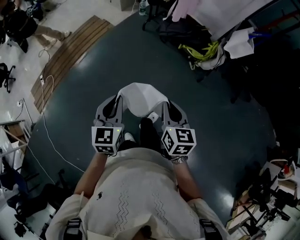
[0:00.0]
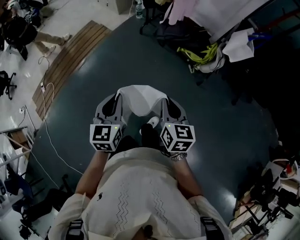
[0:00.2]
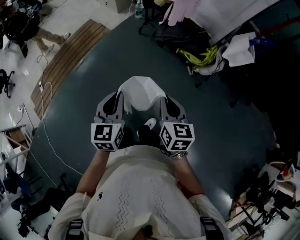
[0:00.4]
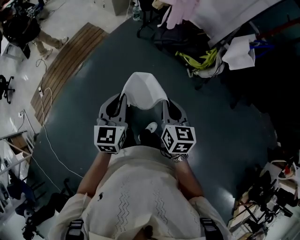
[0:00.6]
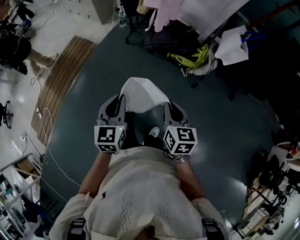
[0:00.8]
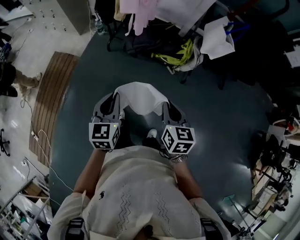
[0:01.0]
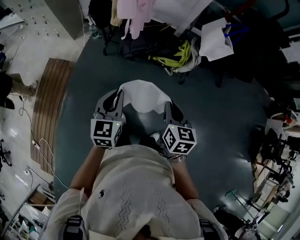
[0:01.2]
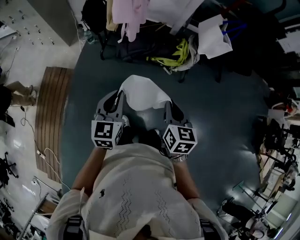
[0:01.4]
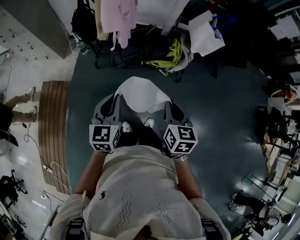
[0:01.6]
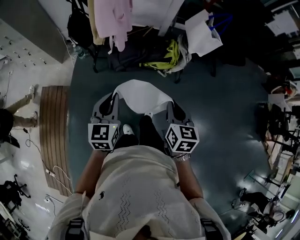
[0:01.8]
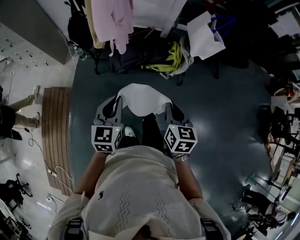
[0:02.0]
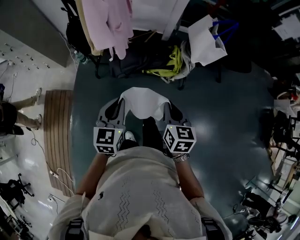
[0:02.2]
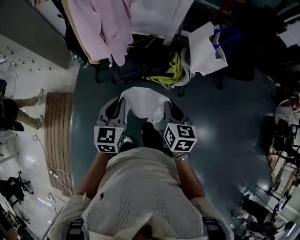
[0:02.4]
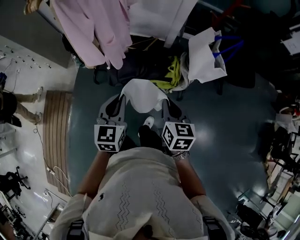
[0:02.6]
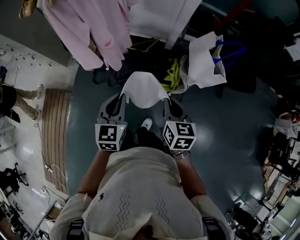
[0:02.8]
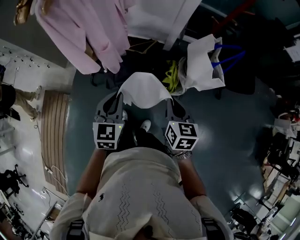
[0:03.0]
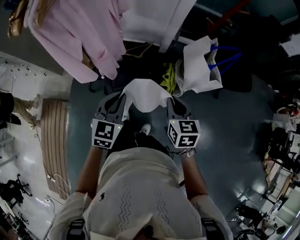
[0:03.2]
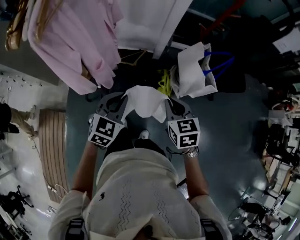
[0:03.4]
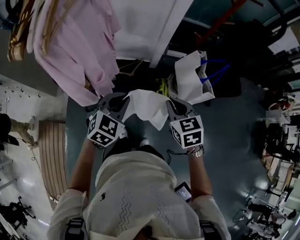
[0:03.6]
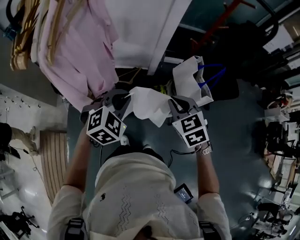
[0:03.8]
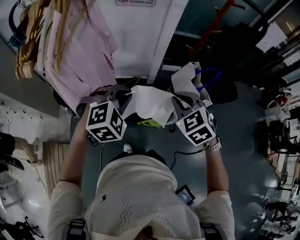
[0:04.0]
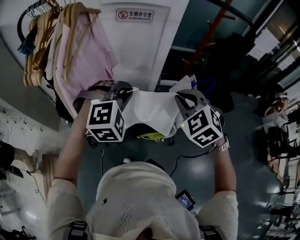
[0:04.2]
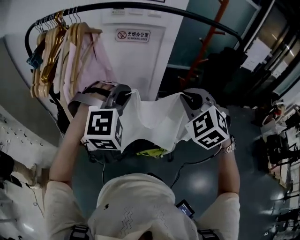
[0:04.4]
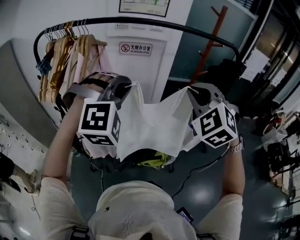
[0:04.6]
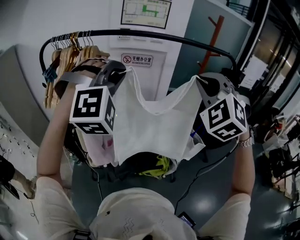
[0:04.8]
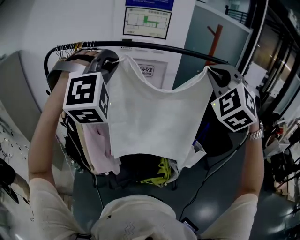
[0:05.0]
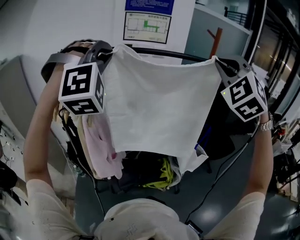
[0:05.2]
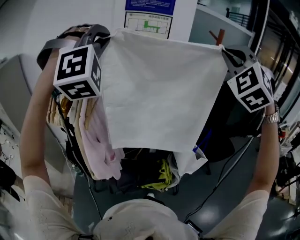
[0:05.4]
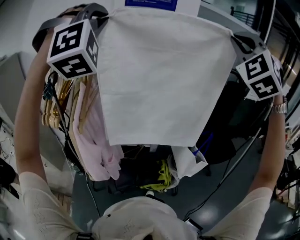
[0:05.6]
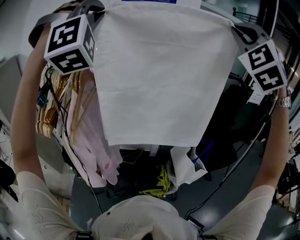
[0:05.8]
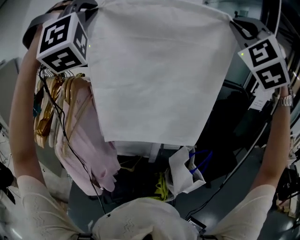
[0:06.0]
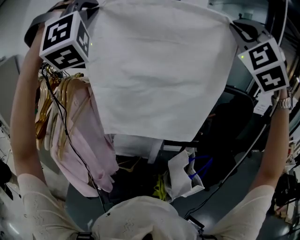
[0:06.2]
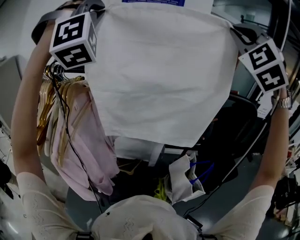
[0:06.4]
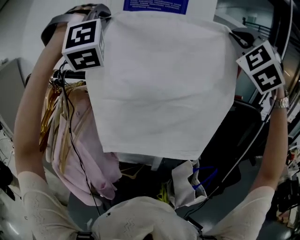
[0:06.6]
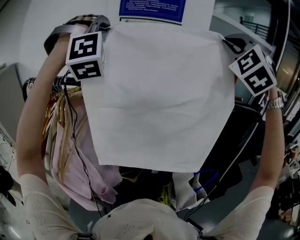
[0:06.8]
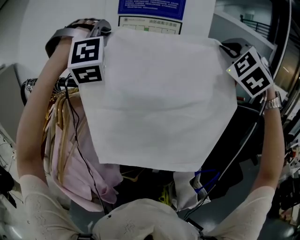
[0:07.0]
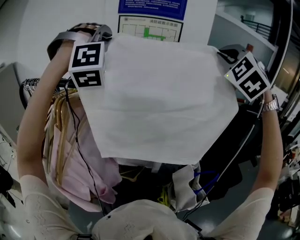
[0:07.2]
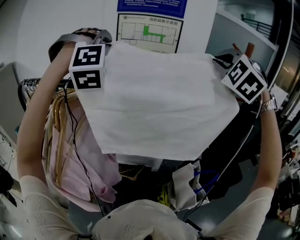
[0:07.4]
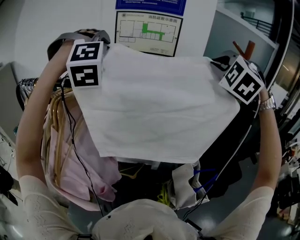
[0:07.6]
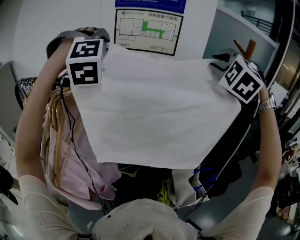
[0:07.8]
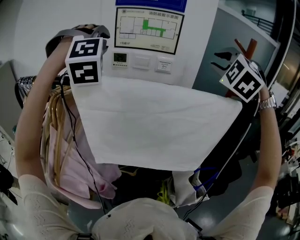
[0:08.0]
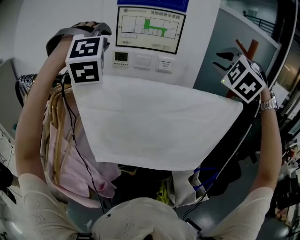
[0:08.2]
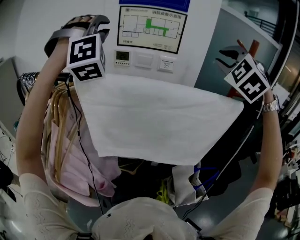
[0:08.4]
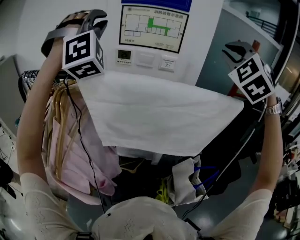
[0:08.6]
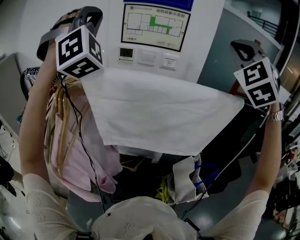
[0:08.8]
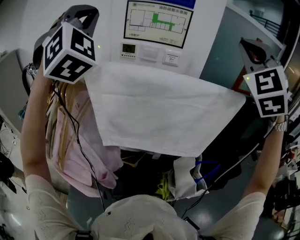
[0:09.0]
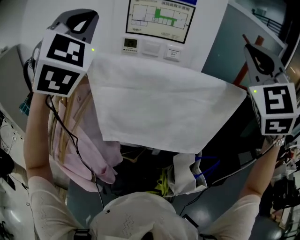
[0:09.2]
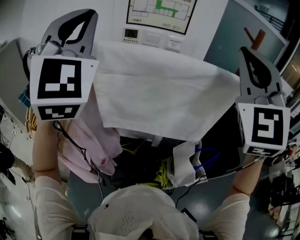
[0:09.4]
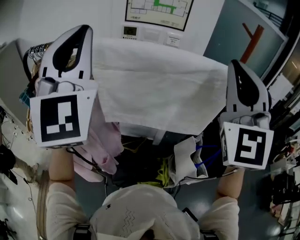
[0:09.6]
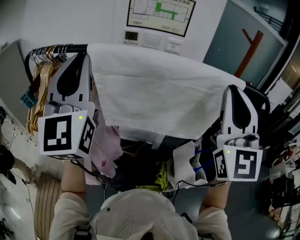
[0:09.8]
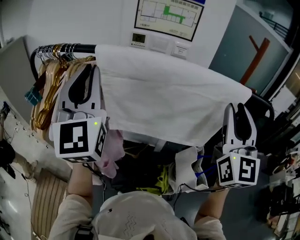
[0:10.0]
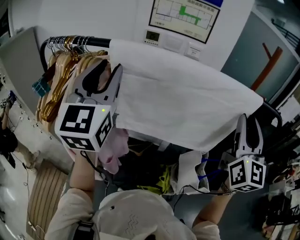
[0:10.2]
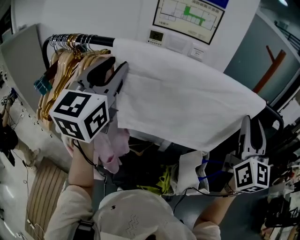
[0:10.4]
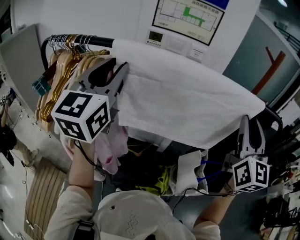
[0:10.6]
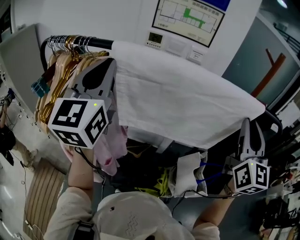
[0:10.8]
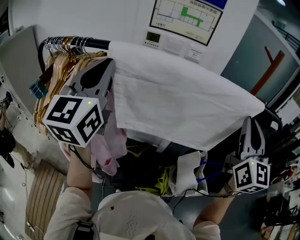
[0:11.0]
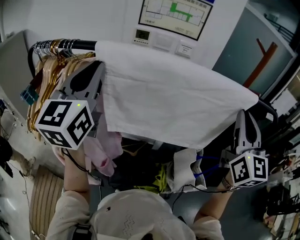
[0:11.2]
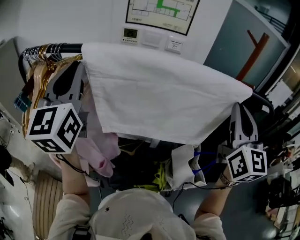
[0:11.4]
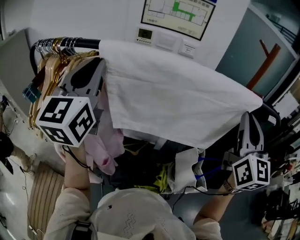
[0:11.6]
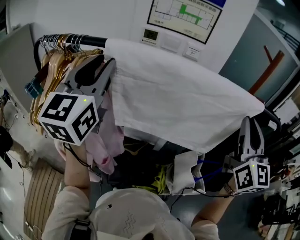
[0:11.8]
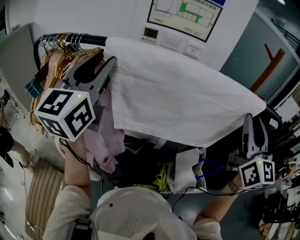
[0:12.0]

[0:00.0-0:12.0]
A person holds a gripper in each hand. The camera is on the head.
0:00.0 to 0:01.6: The left gripper shifts by some 50 cm, and changes its angle by about 40 degrees, while the right gripper ends up about 35 cm from where it was, and changes its angle by about 40 degrees.
0:01.6 to 0:03.0: The right gripper heads forward, covering some 35 cm. The left gripper goes roughly 35 cm forward and to the right.
0:03.0 to 0:04.4: Both grippers travel together upward and forward, roughly 35 cm. The left gripper twists roughly 80 degrees clockwise, seen from behind. The right gripper rolls counterclockwise, seen from behind, by roughly 60 degrees.
0:04.4 to 0:06.0: Both grippers travel together upward and forward, about 40 cm. The right gripper tips its fingers upward by about 40 degrees; the left gripper points its fingers some 40 degrees further upward.
0:06.0 to 0:07.6: The two grippers go approximately 25 cm forward and downward. The left gripper rotates approximately 30 degrees. The right gripper swivels approximately 30 degrees.
0:07.6 to 0:09.0: The left gripper is displaced upward and backward by some 10 cm, and turns by approximately 40 degrees, while the right gripper shifts roughly 10 cm backward and upward, turns by some 30 degrees, and opens and closes again.
0:09.0 to 0:10.4: Both grippers move downward and backward, roughly 20 cm. The left gripper twists roughly 70 degrees counterclockwise, seen from behind, and opens its fingers. The right gripper twists roughly 60 degrees clockwise, seen from behind, and opens up.
0:10.4 to 0:12.0: The left gripper closes, then reopens.

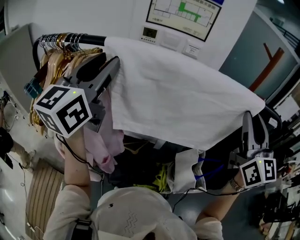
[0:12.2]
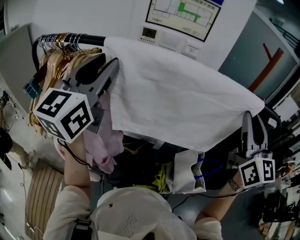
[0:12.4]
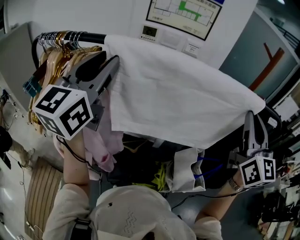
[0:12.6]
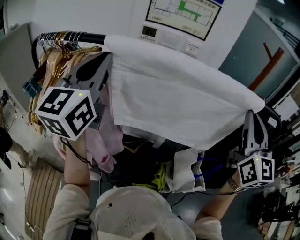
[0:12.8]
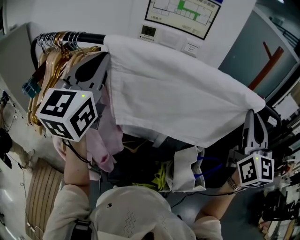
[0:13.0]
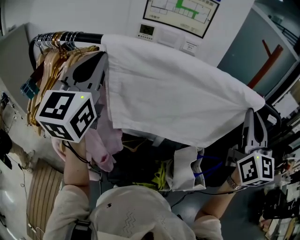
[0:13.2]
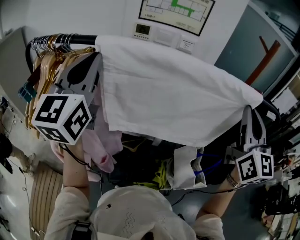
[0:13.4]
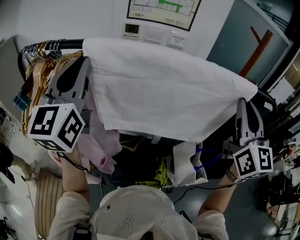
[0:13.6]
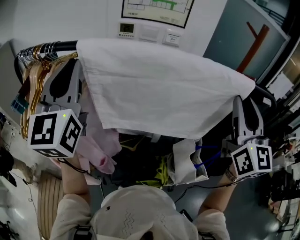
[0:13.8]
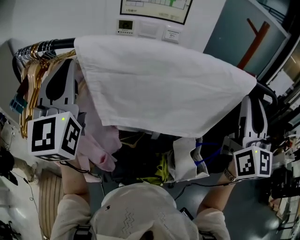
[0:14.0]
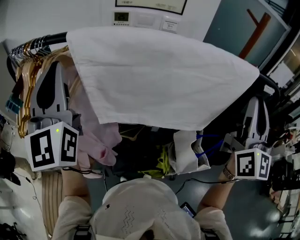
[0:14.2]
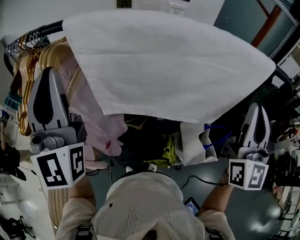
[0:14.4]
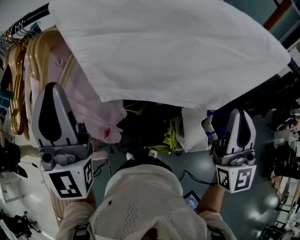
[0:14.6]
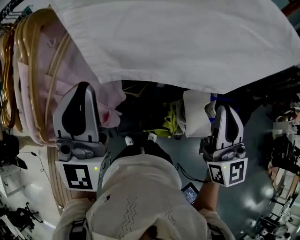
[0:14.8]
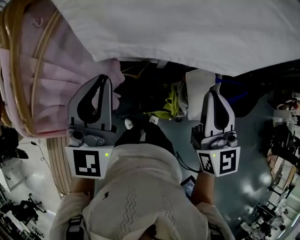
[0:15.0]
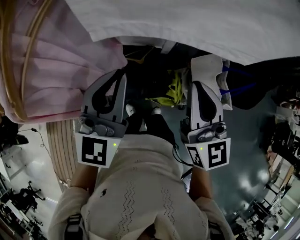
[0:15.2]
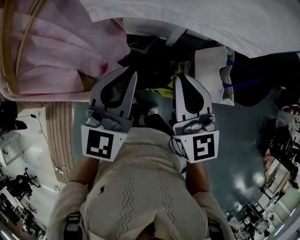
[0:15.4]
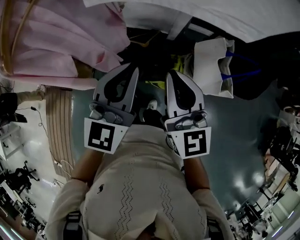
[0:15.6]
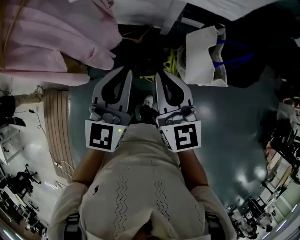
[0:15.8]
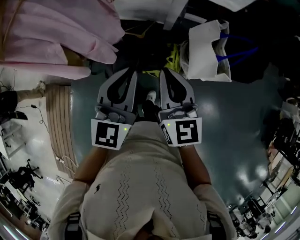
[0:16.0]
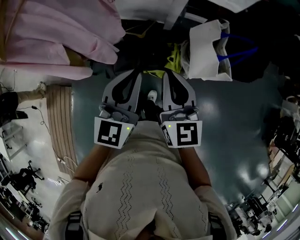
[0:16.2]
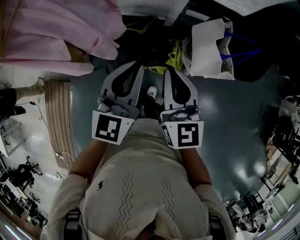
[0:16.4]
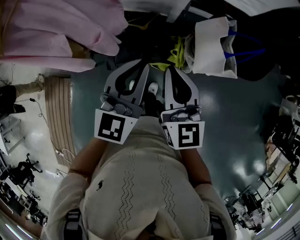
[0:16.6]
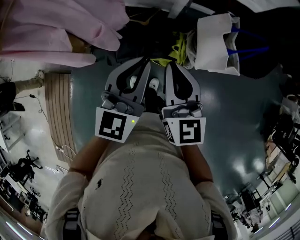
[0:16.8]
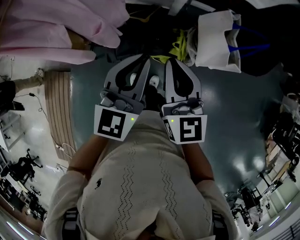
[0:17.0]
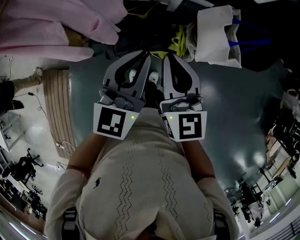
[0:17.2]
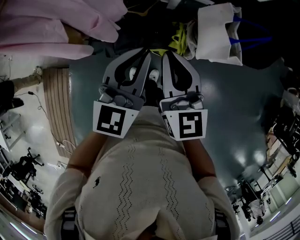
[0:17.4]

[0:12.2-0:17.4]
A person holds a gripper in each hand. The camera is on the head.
0:12.2 to 0:14.0: The left gripper turns by roughly 30 degrees, and closes.
0:14.0 to 0:15.6: The right gripper is displaced downward and to the left by about 40 cm, turns by some 40 degrees, and closes. Meanwhile the left gripper heads downward, to the right and backward, covering roughly 40 cm, and turns by about 30 degrees.
0:15.6 to 0:17.4: Both grippers move backward and downward, roughly 10 cm.

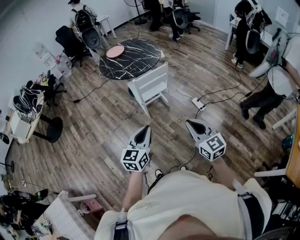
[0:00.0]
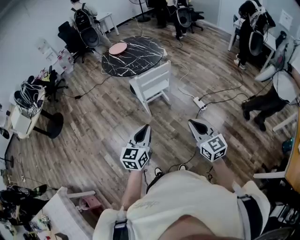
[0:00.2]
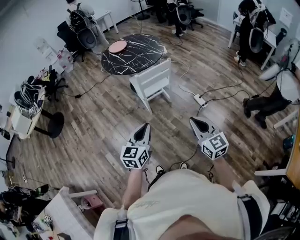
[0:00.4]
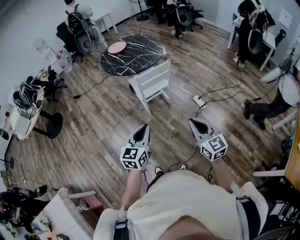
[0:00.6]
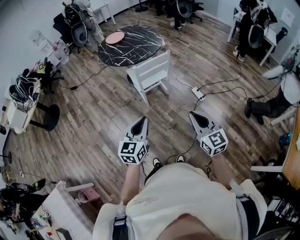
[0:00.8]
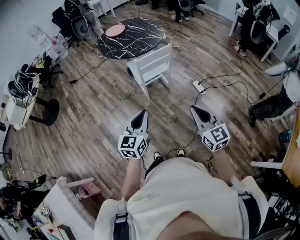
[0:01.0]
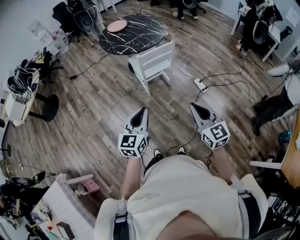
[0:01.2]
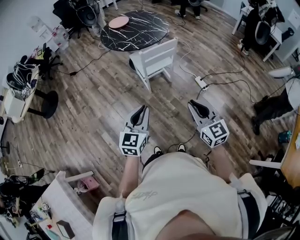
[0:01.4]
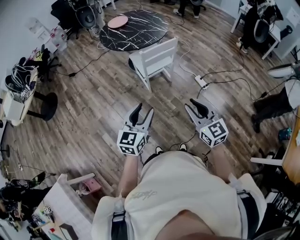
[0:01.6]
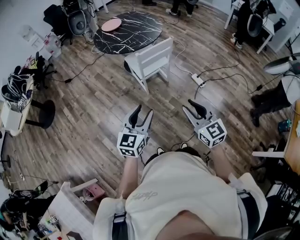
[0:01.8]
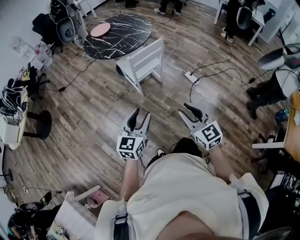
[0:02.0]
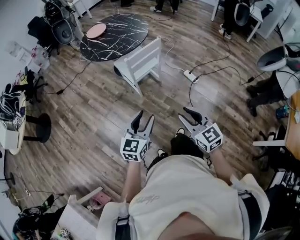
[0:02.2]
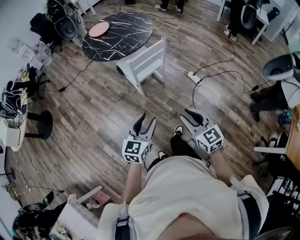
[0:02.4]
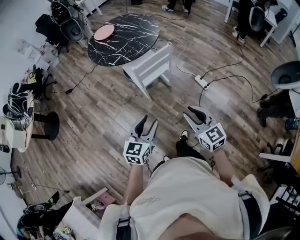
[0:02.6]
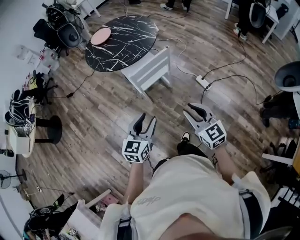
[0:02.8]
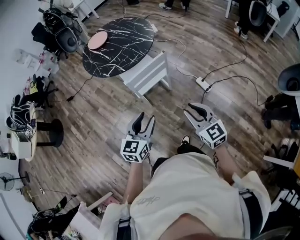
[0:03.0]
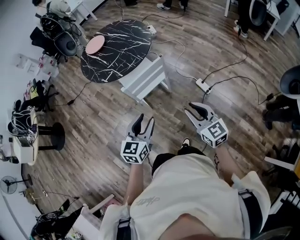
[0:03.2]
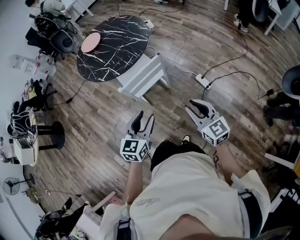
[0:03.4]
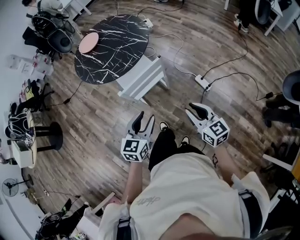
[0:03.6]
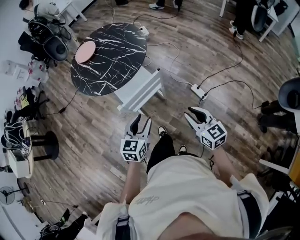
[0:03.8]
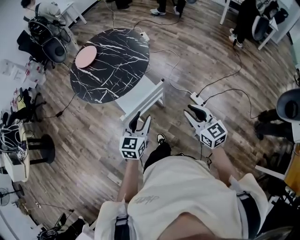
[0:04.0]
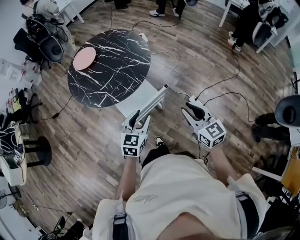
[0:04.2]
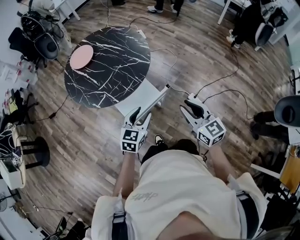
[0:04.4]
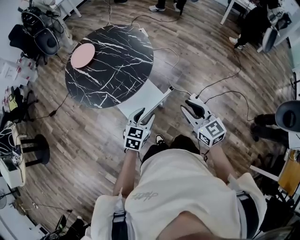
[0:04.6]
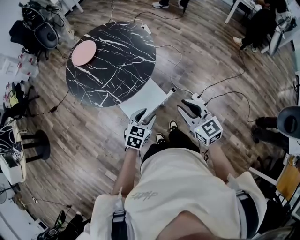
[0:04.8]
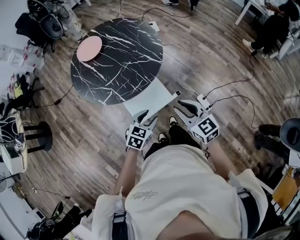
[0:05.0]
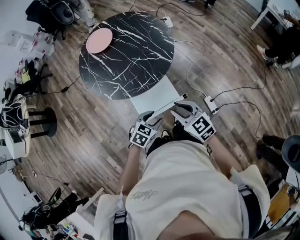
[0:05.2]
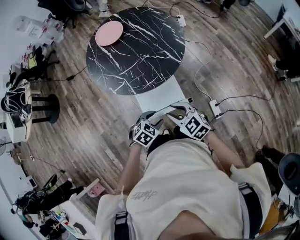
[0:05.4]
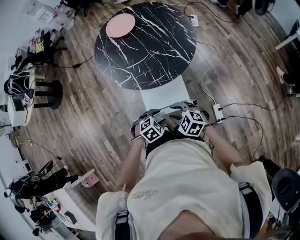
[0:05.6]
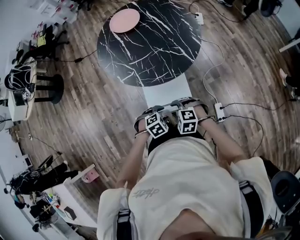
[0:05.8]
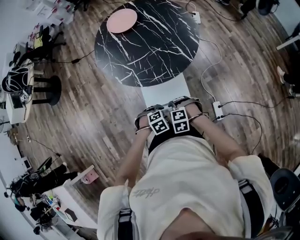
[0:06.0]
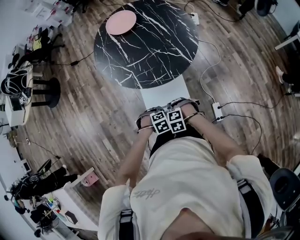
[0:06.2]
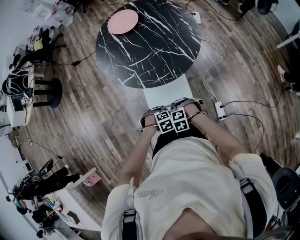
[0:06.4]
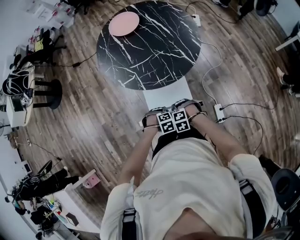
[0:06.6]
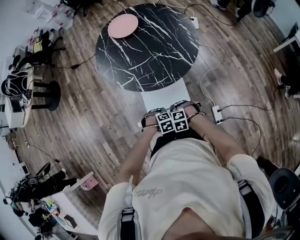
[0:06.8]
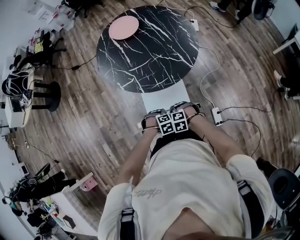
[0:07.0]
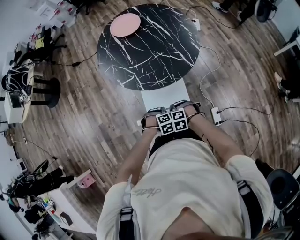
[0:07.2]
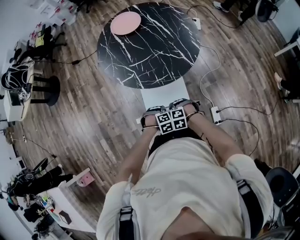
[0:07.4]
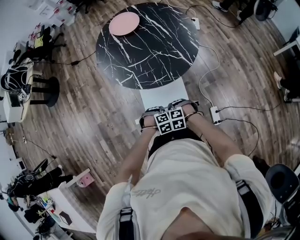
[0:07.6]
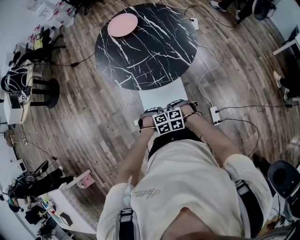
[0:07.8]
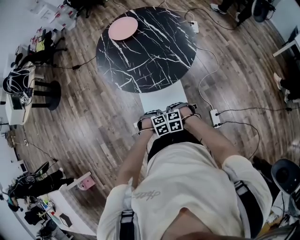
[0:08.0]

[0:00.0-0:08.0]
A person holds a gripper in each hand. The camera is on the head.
0:00.0 to 0:01.6: The two grippers go some 10 cm to the left. The right gripper opens; the left gripper opens up.
0:01.6 to 0:03.2: Both grippers travel together forward and to the right, roughly 25 cm.
0:03.2 to 0:04.8: The grippers both shift forward by some 30 cm. The left gripper rotates about 20 degrees.
0:04.8 to 0:06.4: Both grippers move downward, about 25 cm. The left gripper tips its fingers downward by about 40 degrees. Meanwhile the right gripper tilts its fingers approximately 60 degrees downward.
0:06.4 to 0:08.0: The left gripper closes its fingers.
